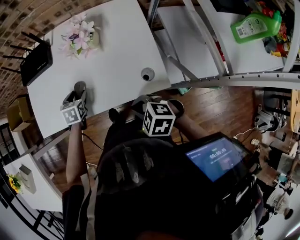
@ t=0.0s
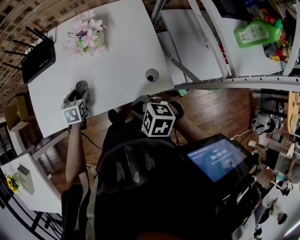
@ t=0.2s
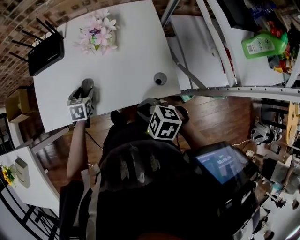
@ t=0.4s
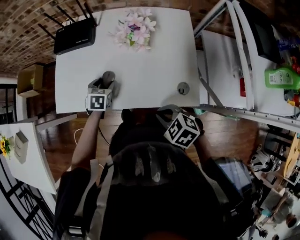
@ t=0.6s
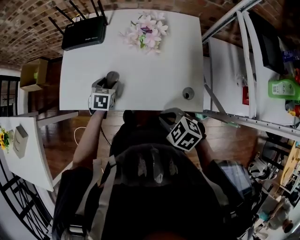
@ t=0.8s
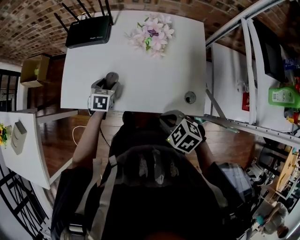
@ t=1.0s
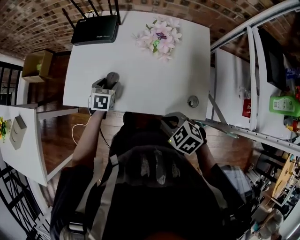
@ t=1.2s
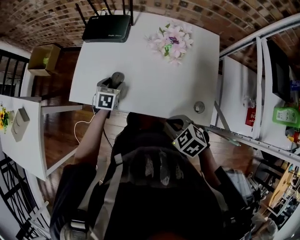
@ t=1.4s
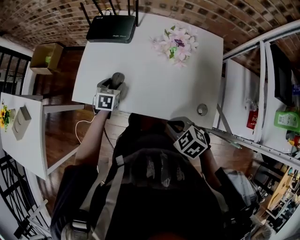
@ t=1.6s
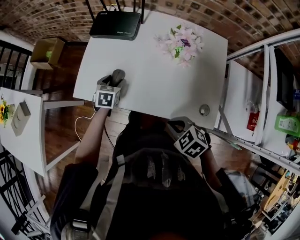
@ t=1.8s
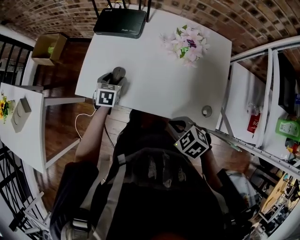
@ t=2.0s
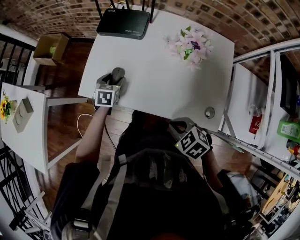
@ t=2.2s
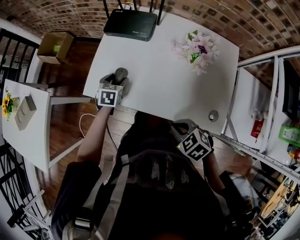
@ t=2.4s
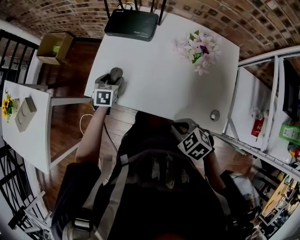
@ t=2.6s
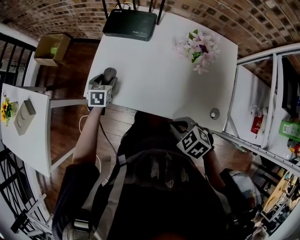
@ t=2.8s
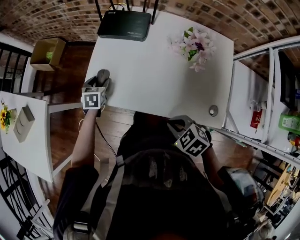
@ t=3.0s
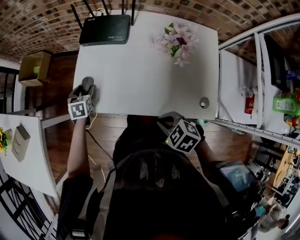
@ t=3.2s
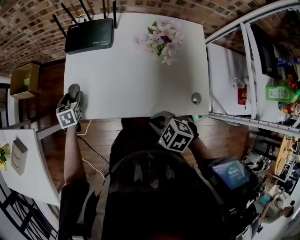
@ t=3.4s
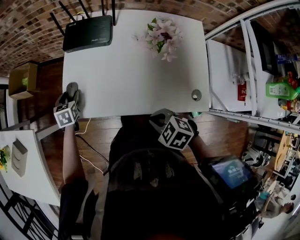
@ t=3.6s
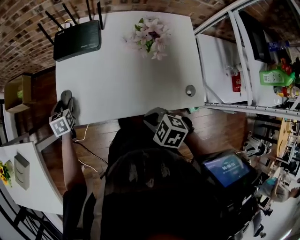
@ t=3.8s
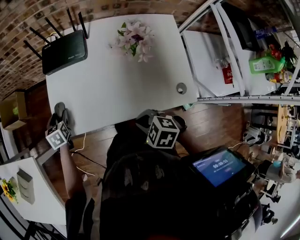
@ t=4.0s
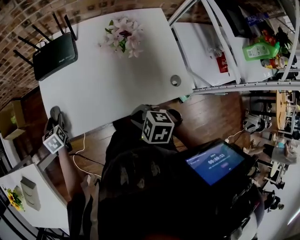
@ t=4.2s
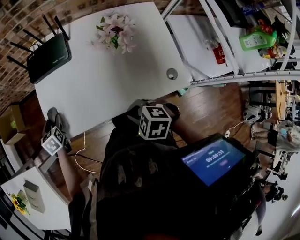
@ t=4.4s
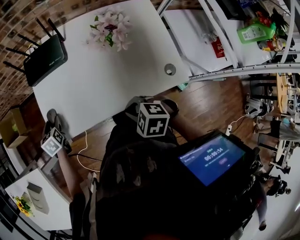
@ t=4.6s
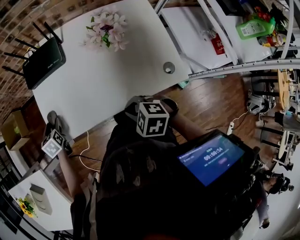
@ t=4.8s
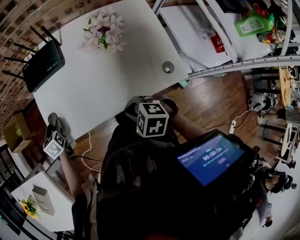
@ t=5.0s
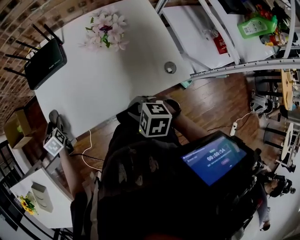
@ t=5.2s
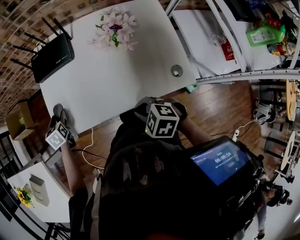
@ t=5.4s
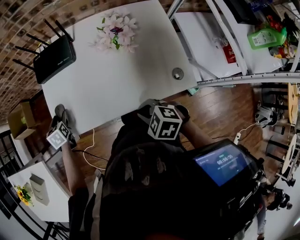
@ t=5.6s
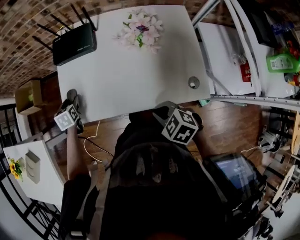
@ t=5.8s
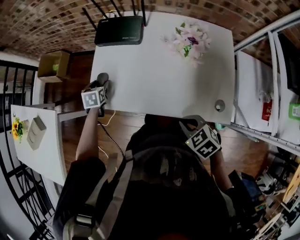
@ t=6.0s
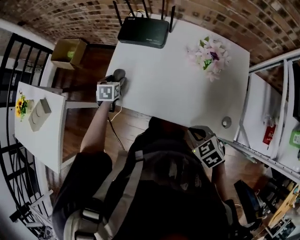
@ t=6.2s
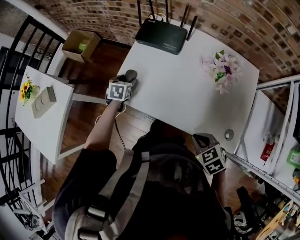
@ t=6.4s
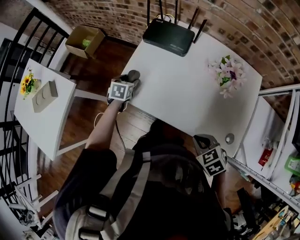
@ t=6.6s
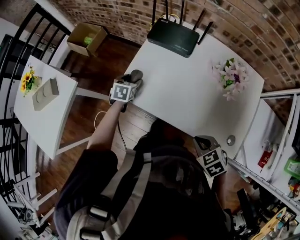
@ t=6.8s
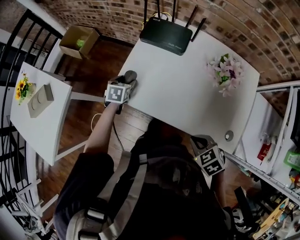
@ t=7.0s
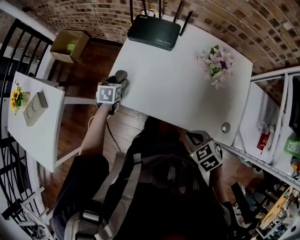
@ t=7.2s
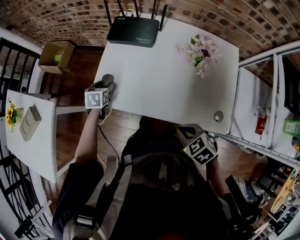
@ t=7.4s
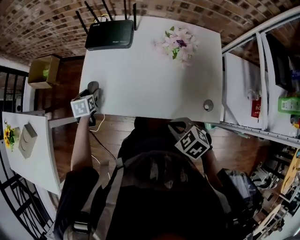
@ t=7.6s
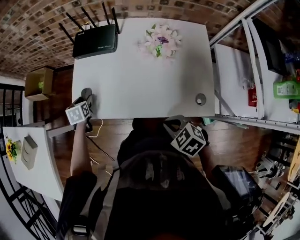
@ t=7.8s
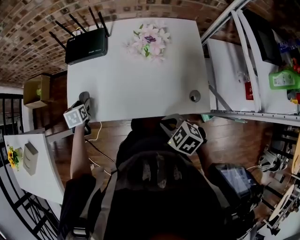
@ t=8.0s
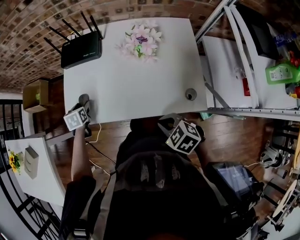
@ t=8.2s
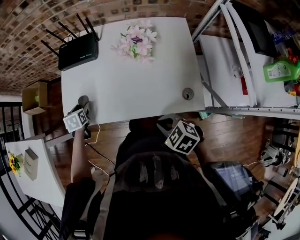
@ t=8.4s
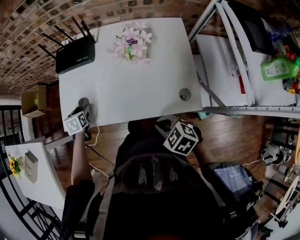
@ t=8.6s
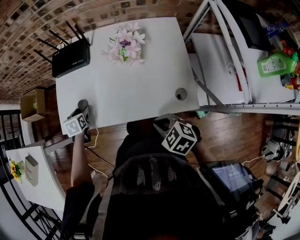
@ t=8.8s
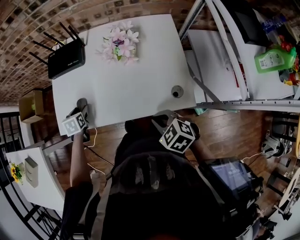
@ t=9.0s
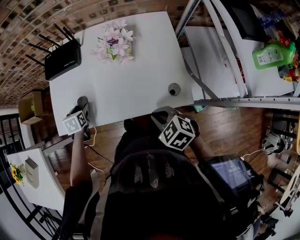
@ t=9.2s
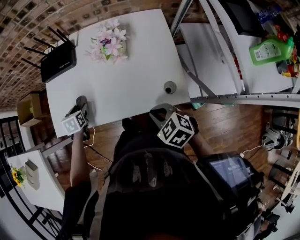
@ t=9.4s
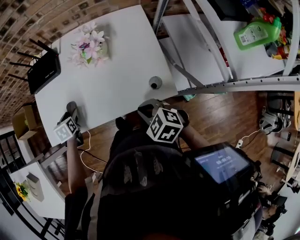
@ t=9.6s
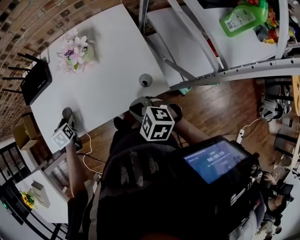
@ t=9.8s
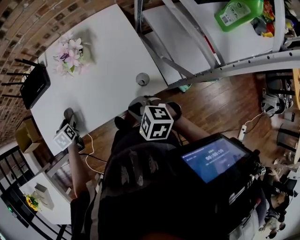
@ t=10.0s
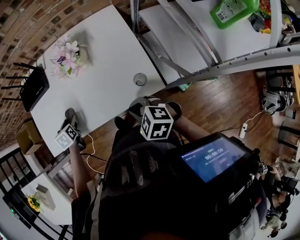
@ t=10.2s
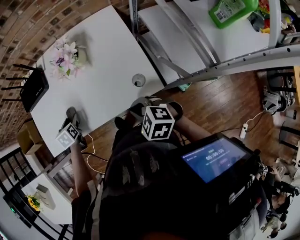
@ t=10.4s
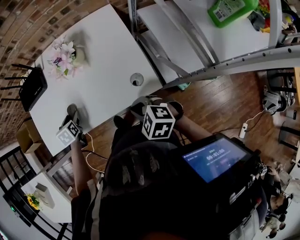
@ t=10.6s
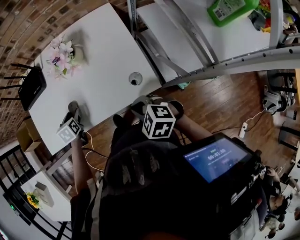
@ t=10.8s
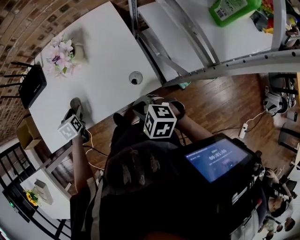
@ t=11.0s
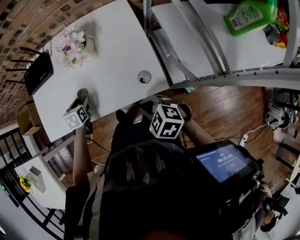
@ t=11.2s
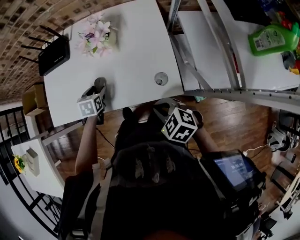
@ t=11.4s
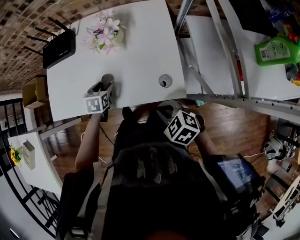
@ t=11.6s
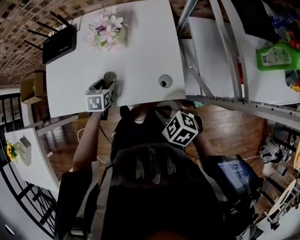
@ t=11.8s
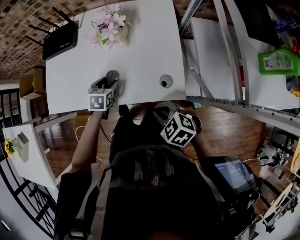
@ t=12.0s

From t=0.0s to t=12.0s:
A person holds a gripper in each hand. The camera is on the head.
From t=0.0s to t=1.6s: The right gripper moves to the left and forward, some 10 cm. Meanwhile the left gripper is displaced to the left and forward by about 15 cm.
From t=1.6s to t=3.0s: The right gripper goes approximately 5 cm to the left. Meanwhile the left gripper moves to the left and forward, some 15 cm.
From t=3.0s to t=4.4s: The grippers stay close to where they were, moving slightly.
From t=4.4s to t=6.0s: The right gripper is displaced to the right by about 5 cm.
From t=6.0s to t=7.6s: The grippers stay close to where they were, moving slightly.
From t=7.6s to t=9.0s: The left gripper moves to the right and backward, about 10 cm; the right gripper heads to the right, covering approximately 10 cm.
From t=9.0s to t=10.4s: The left gripper shifts some 10 cm to the right. The right gripper moves to the right, roughly 5 cm.
From t=10.4s to t=12.0s: The left gripper travels to the right and backward by some 15 cm.

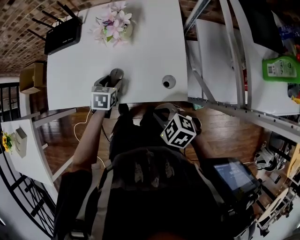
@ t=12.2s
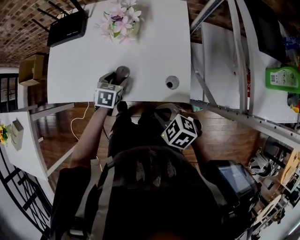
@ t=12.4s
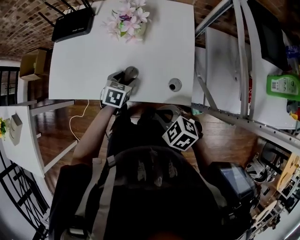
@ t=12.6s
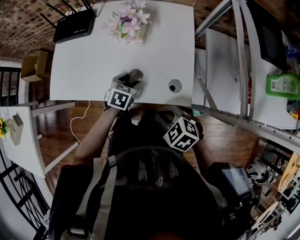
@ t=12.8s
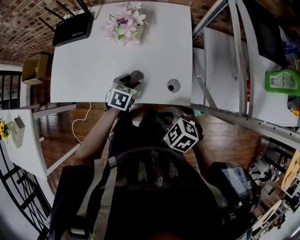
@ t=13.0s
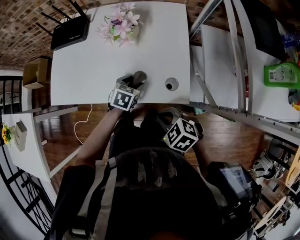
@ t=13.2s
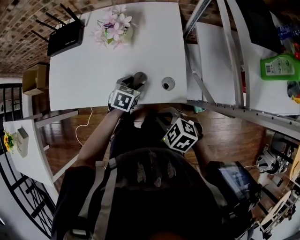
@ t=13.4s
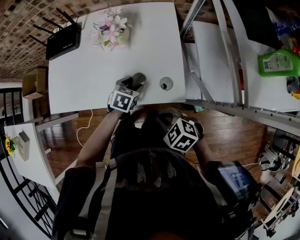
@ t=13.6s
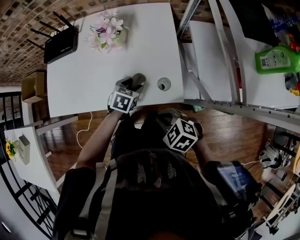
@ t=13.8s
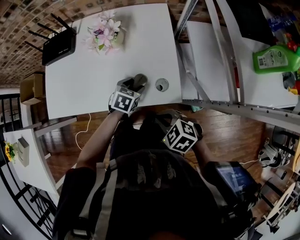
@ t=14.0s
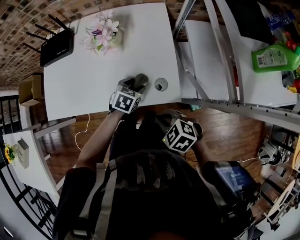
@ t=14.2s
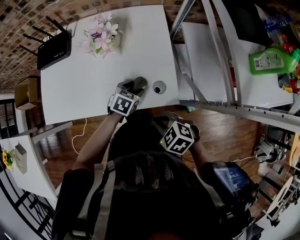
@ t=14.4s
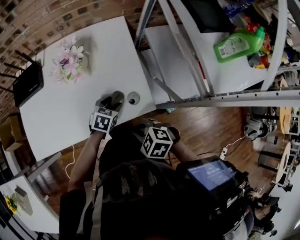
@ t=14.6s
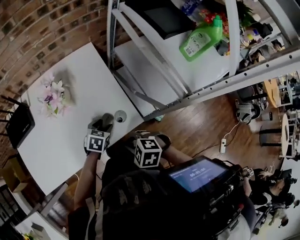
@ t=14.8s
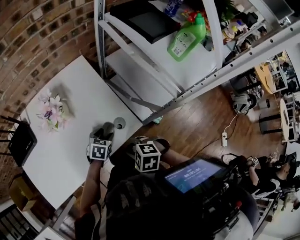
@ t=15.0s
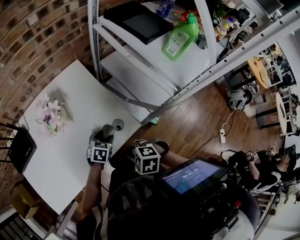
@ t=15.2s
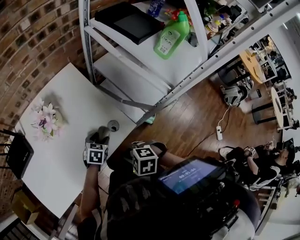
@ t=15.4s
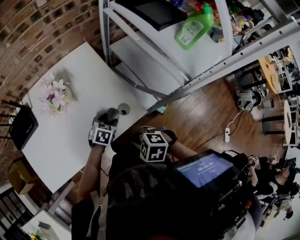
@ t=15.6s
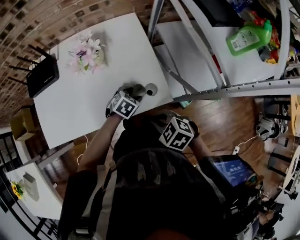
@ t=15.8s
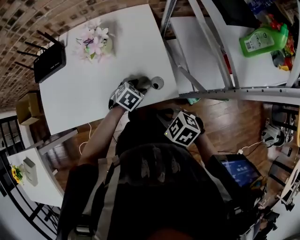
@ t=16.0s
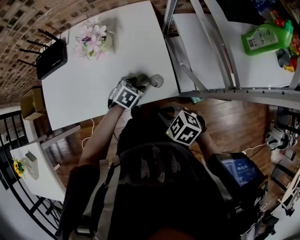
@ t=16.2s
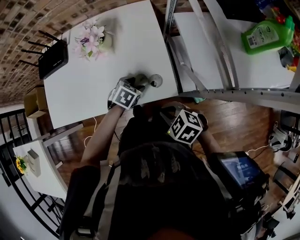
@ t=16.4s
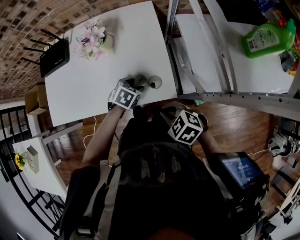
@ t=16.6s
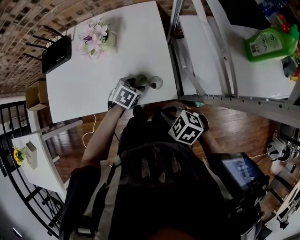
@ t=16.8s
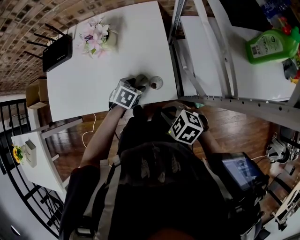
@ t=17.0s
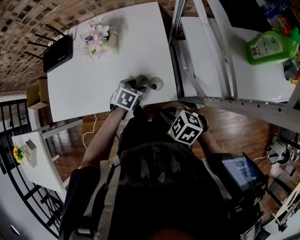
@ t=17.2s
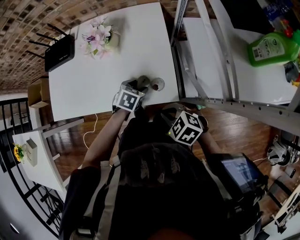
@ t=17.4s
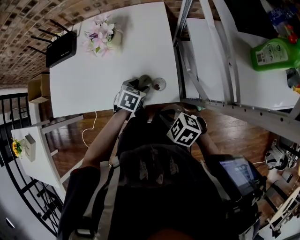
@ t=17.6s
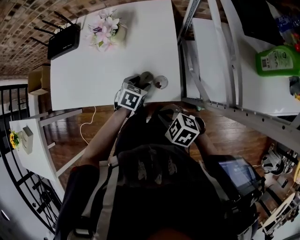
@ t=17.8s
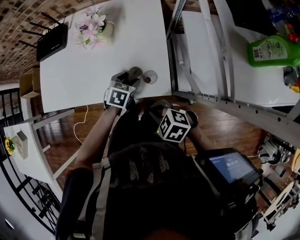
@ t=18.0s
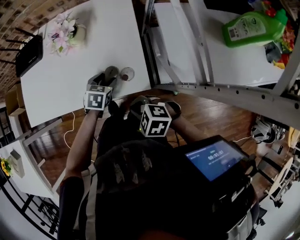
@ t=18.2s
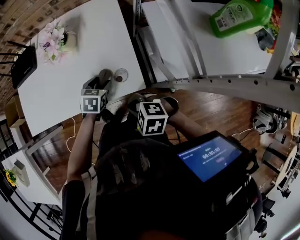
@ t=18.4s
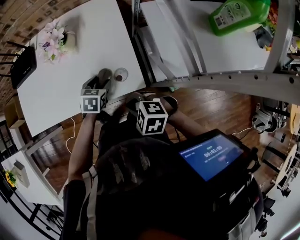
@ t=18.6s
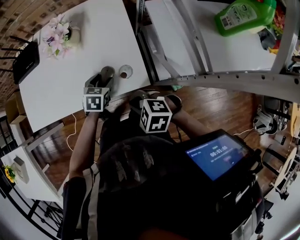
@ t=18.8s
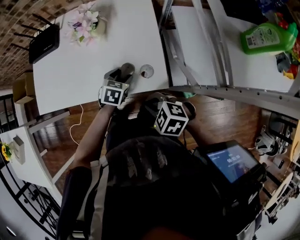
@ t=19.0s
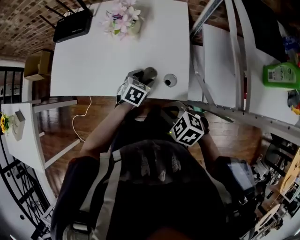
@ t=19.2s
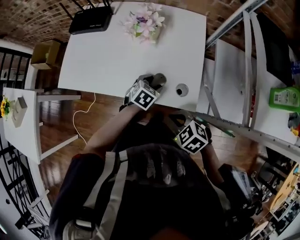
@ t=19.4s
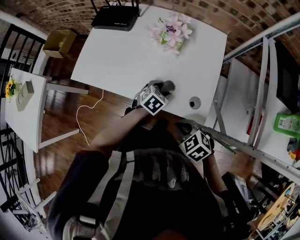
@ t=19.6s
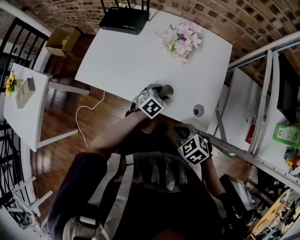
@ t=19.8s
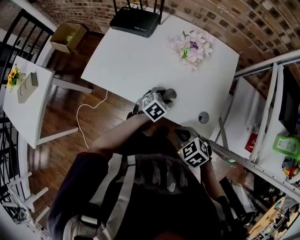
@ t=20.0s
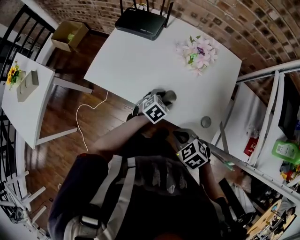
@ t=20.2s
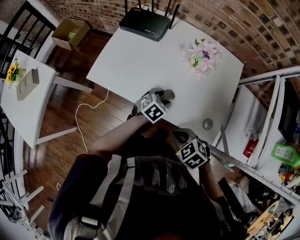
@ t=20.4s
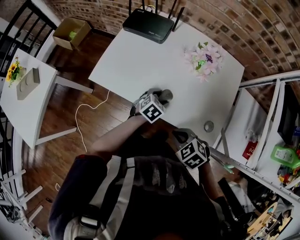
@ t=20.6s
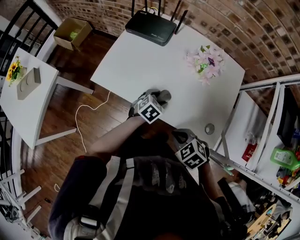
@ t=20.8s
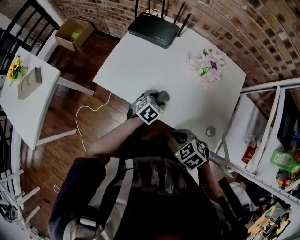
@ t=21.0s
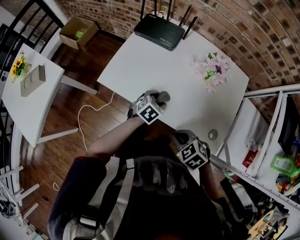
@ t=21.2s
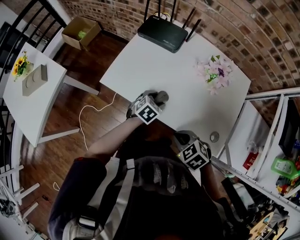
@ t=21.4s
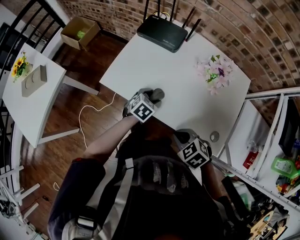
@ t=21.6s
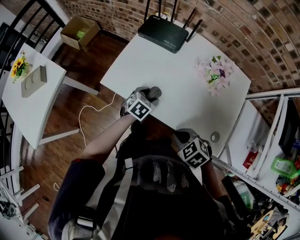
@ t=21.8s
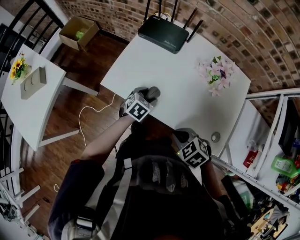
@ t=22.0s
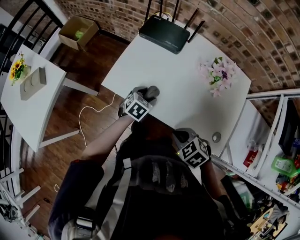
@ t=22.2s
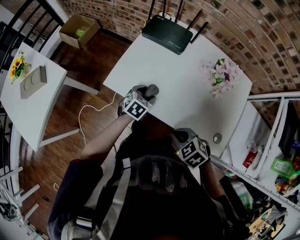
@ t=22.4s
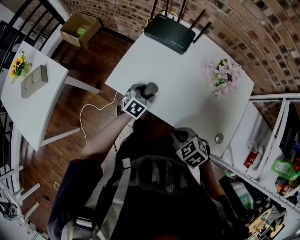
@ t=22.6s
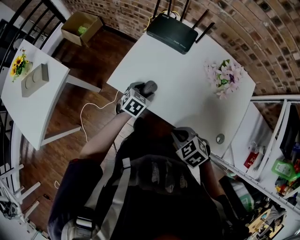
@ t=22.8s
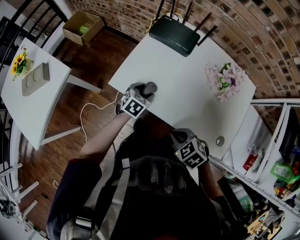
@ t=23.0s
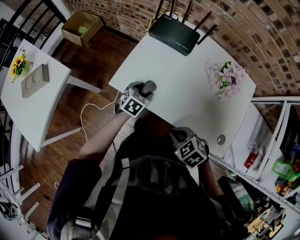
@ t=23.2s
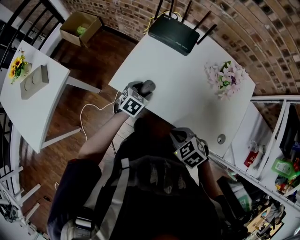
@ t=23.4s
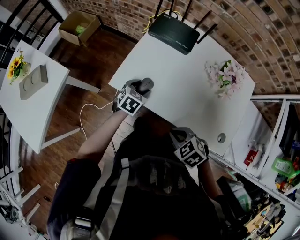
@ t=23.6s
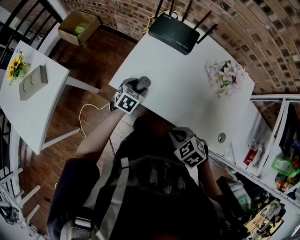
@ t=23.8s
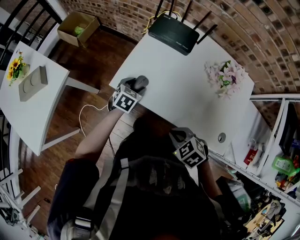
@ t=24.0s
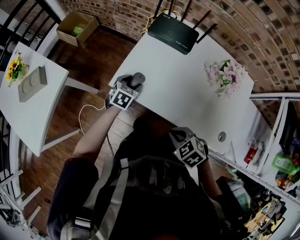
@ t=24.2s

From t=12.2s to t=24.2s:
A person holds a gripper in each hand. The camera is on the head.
From t=12.2s to t=13.8s: The left gripper is displaced to the right by some 10 cm.
From t=13.8s to t=15.2s: The left gripper moves some 5 cm, and swivels approximately 30 degrees.
From t=15.2s to t=16.6s: The right gripper ends up about 10 cm from where it was.
From t=16.6s to t=18.2s: The grippers make only small movements.
From t=18.2s to t=19.8s: Both grippers travel together to the left, some 10 cm.
From t=19.8s to t=21.2s: Both grippers travel together to the left and forward, roughly 15 cm.
From t=21.2s to t=22.6s: The left gripper is displaced to the left and forward by about 15 cm. The right gripper travels to the left by roughly 5 cm.
From t=22.6s to t=24.2s: The left gripper heads to the left and forward, covering some 10 cm.
